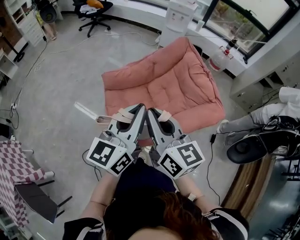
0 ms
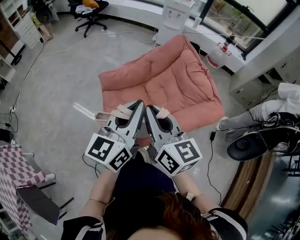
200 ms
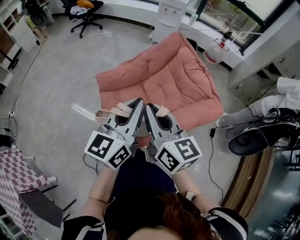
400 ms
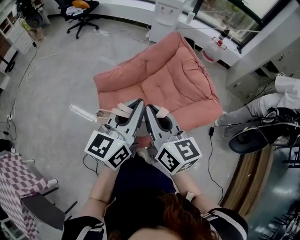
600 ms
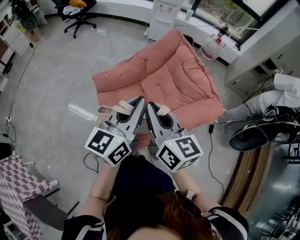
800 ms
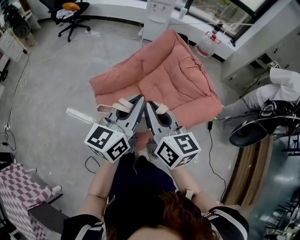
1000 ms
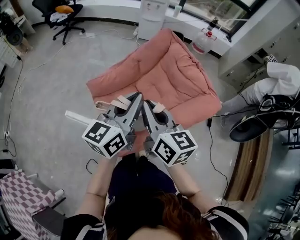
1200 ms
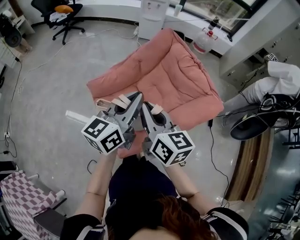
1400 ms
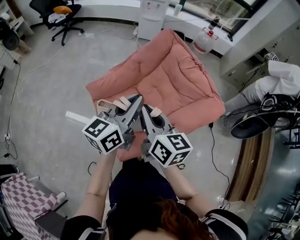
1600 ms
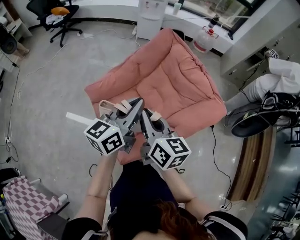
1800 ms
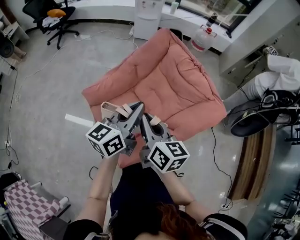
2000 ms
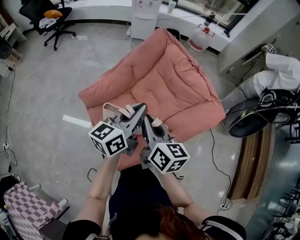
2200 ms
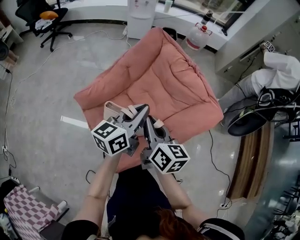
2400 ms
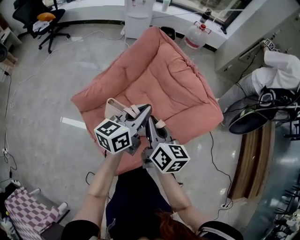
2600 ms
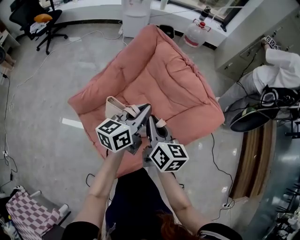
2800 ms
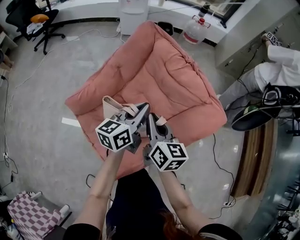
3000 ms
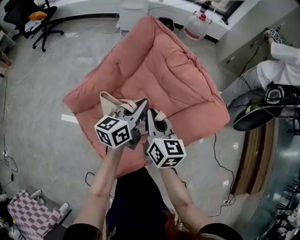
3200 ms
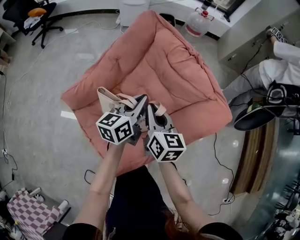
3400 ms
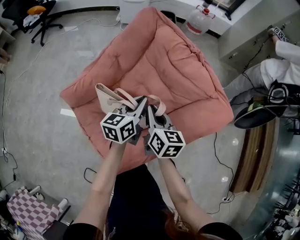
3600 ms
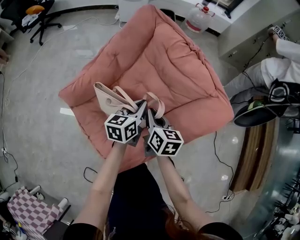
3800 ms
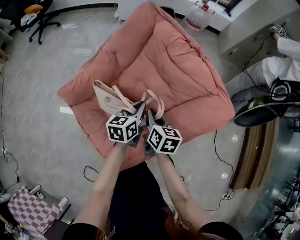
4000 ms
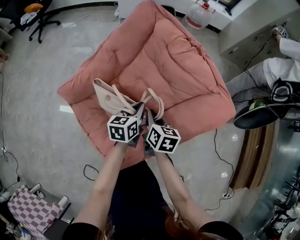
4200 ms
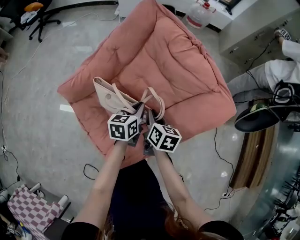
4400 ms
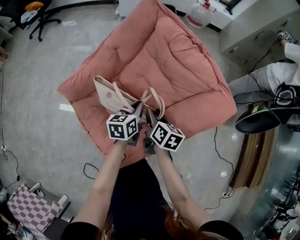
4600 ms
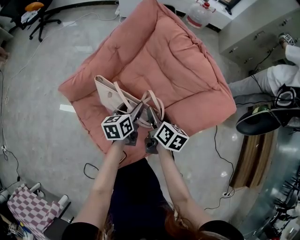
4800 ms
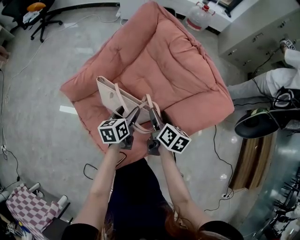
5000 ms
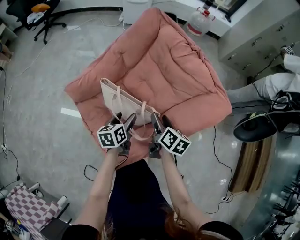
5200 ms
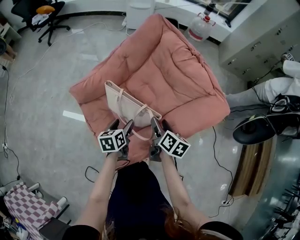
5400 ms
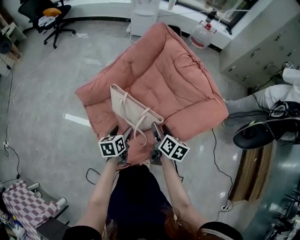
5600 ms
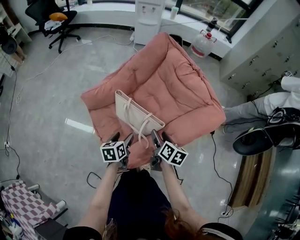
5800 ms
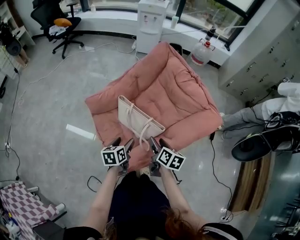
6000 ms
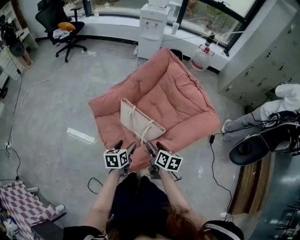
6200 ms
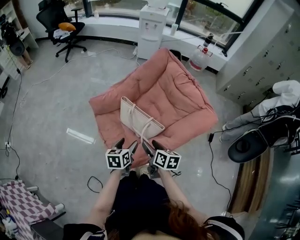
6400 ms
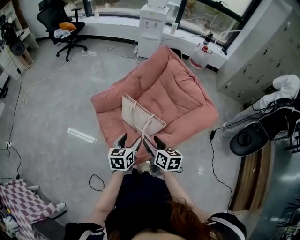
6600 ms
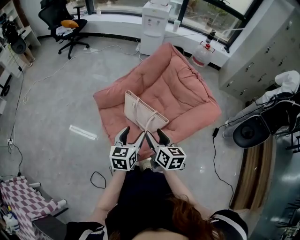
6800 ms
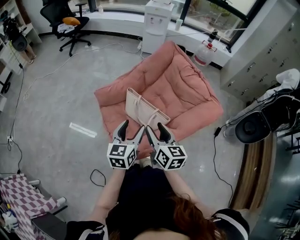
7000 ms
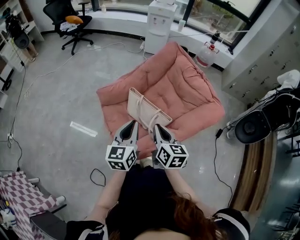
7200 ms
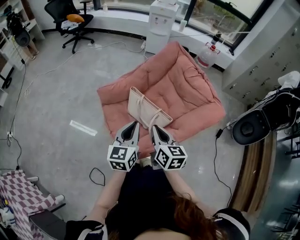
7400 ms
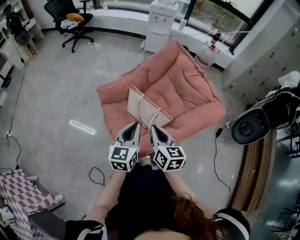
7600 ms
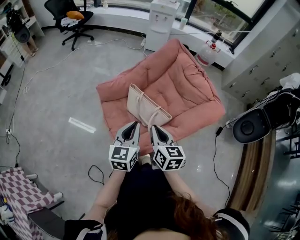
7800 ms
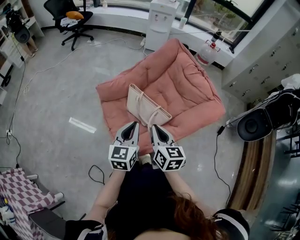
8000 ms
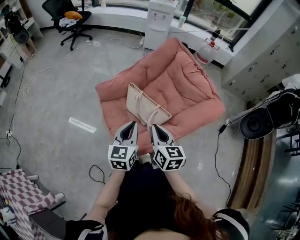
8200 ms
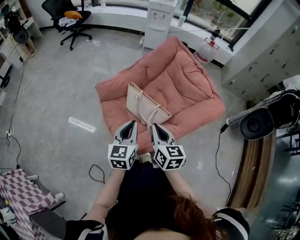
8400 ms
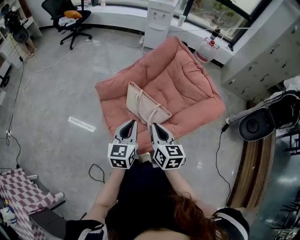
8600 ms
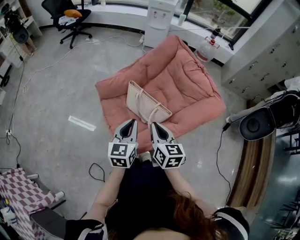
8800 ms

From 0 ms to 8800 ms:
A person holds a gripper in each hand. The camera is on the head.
From 0 ms to 1400 ms: The right gripper goes some 10 cm forward and downward; the left gripper shifts about 10 cm forward, and rotates about 20 degrees.
From 1400 ms to 3000 ms: The two grippers go some 25 cm downward, forward and to the right.
From 3000 ms to 4400 ms: The two grippers go roughly 20 cm downward. The right gripper changes its angle by approximately 20 degrees. Meanwhile the left gripper turns by some 20 degrees.
From 4400 ms to 5800 ms: The right gripper is displaced backward and upward by about 10 cm, and opens its fingers; the left gripper goes some 20 cm backward and to the left, and opens its fingers.
From 5800 ms to 7400 ms: The right gripper moves upward, to the left and backward, about 20 cm, changes its angle by some 30 degrees, and closes; the left gripper shifts about 20 cm upward, changes its angle by approximately 40 degrees, and closes its fingers.
From 7400 ms to 8800 ms: The grippers make only small movements.

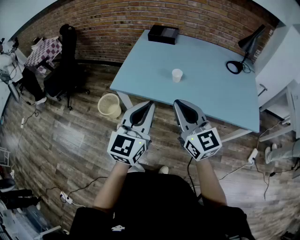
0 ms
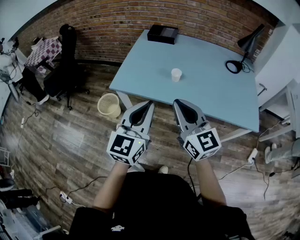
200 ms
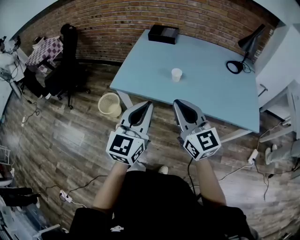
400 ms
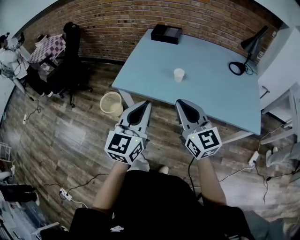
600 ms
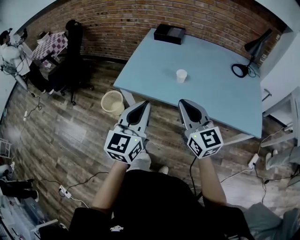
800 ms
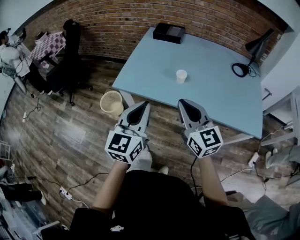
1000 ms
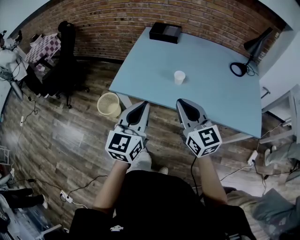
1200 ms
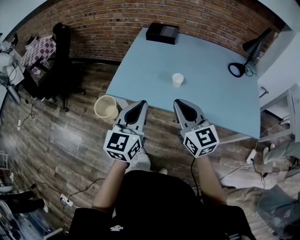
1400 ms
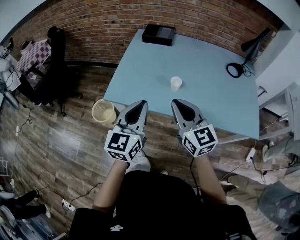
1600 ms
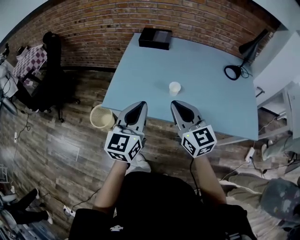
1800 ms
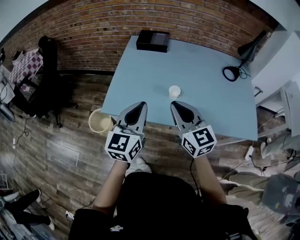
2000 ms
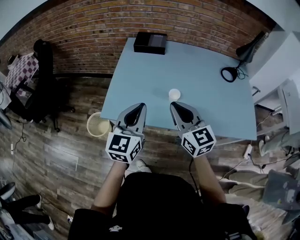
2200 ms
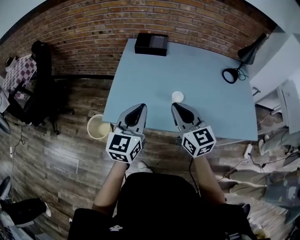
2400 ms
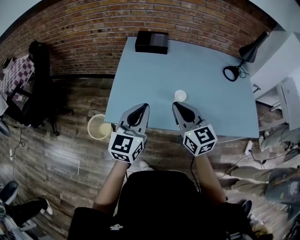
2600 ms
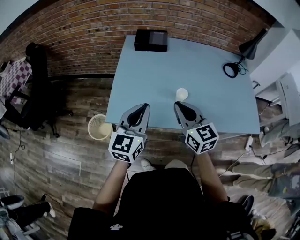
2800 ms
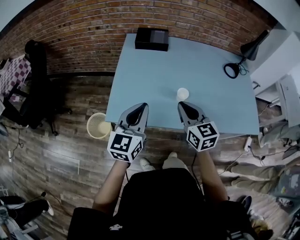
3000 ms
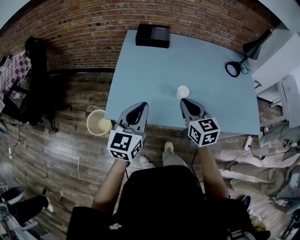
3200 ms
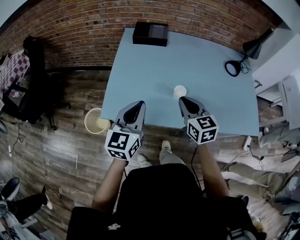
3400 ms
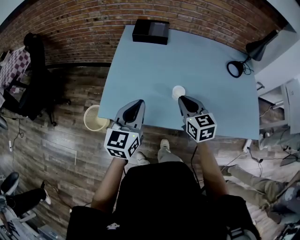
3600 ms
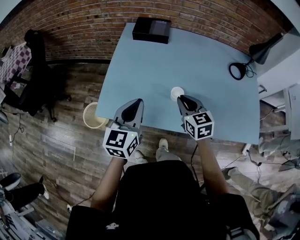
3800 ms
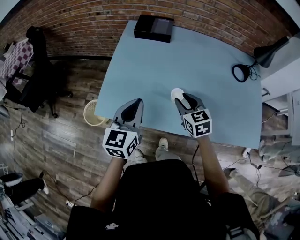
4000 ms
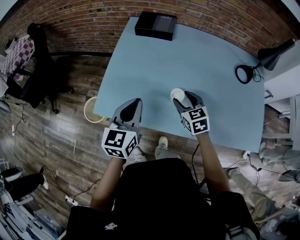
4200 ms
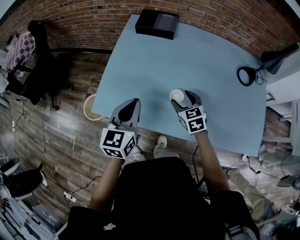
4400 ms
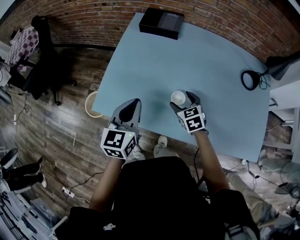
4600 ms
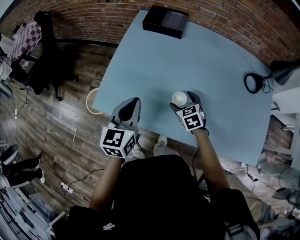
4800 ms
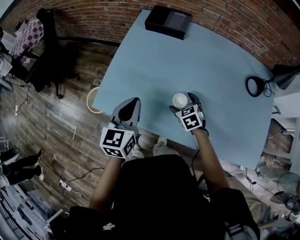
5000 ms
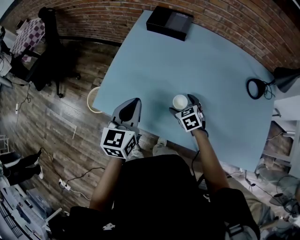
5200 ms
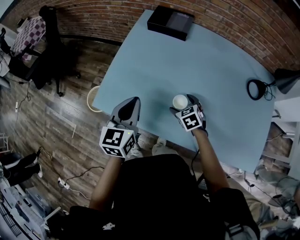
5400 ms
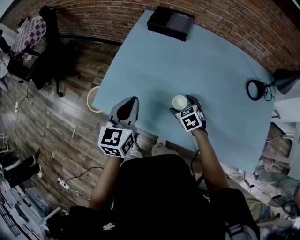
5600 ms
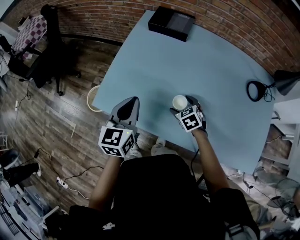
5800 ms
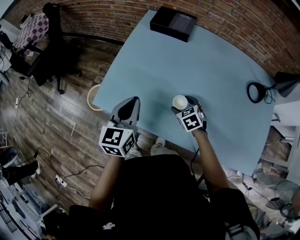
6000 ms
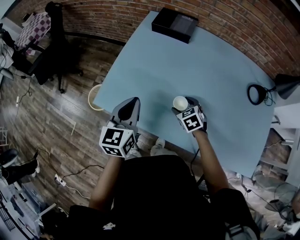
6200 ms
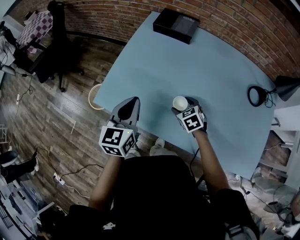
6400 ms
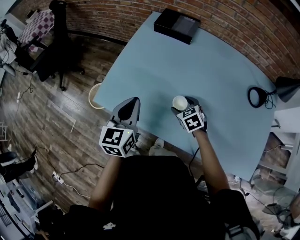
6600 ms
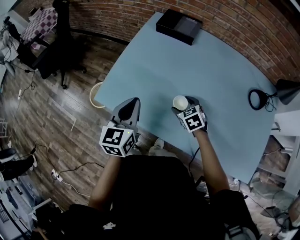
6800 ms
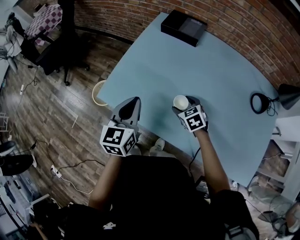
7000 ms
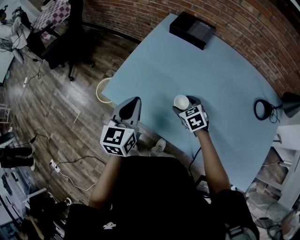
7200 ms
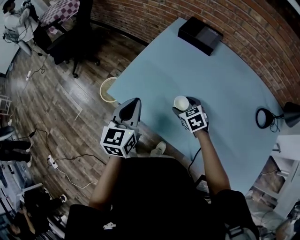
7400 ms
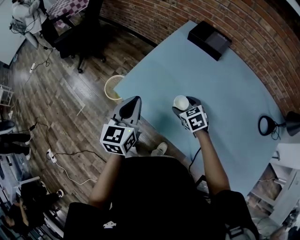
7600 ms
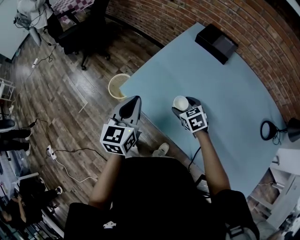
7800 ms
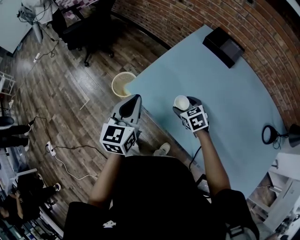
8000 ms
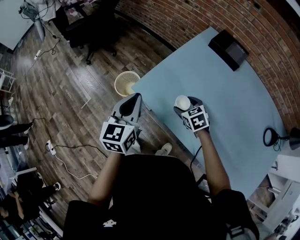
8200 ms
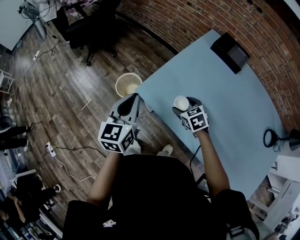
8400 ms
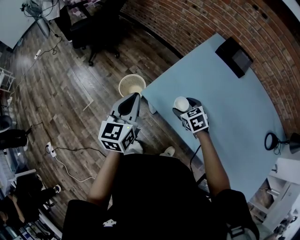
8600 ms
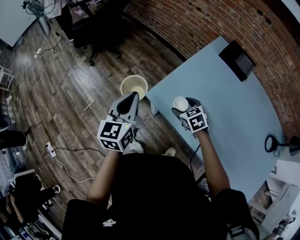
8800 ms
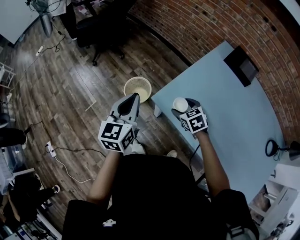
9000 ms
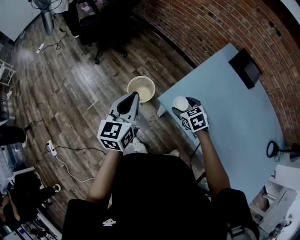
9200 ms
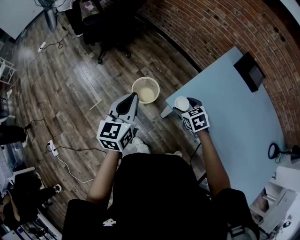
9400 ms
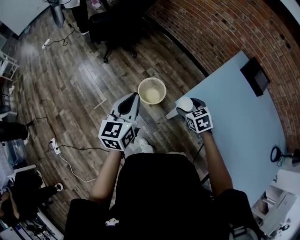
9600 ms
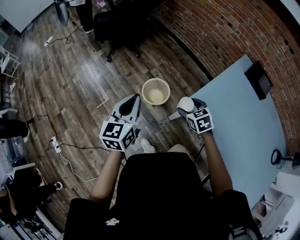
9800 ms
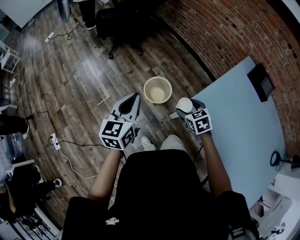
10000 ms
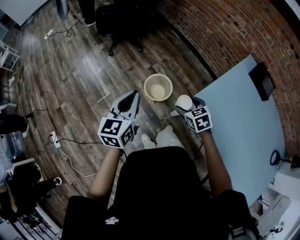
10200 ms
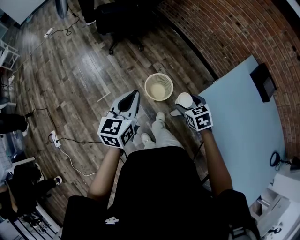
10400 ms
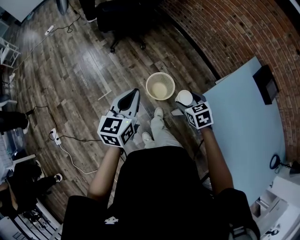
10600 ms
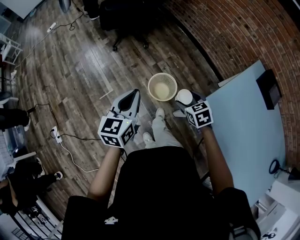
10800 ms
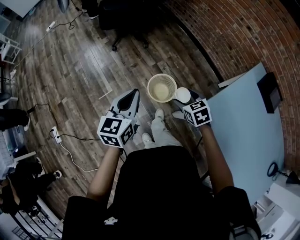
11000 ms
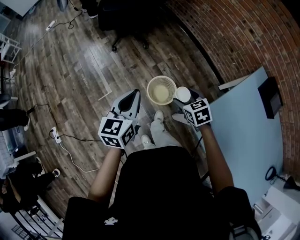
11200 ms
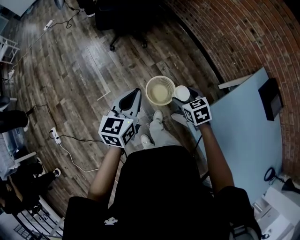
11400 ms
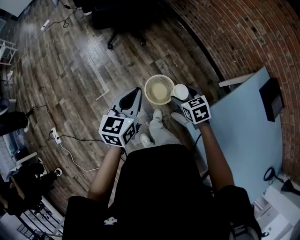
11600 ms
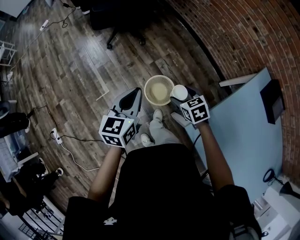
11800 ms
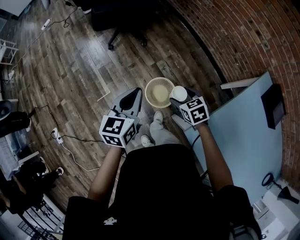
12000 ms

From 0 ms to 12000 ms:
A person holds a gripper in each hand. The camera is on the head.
From 0 ms to 1600 ms: Both grippers move forward, roughly 10 cm.
From 1600 ms to 3000 ms: The right gripper shifts some 15 cm forward and downward. Meanwhile the left gripper goes approximately 15 cm forward and to the left.
From 3000 ms to 4400 ms: The left gripper is displaced forward, to the right and downward by roughly 10 cm; the right gripper shifts approximately 20 cm downward, forward and to the right, swivels approximately 30 degrees, and opens its fingers.
From 4400 ms to 6000 ms: The right gripper shifts some 10 cm downward.
From 6000 ms to 7600 ms: Both grippers move to the left, about 10 cm.
From 7600 ms to 9000 ms: The right gripper moves to the left and forward, some 25 cm; the left gripper moves to the left, some 25 cm.
From 9000 ms to 10400 ms: The two grippers go some 20 cm to the left.
From 10400 ms to 12000 ms: The two grippers go about 20 cm forward.

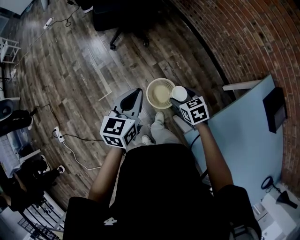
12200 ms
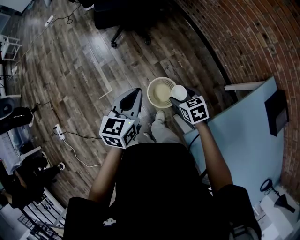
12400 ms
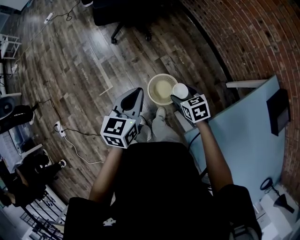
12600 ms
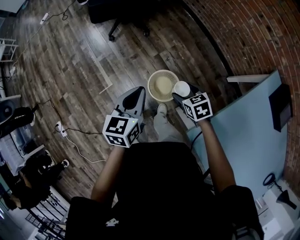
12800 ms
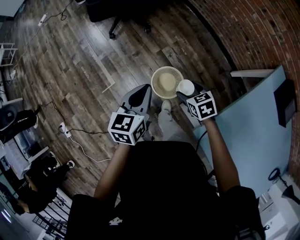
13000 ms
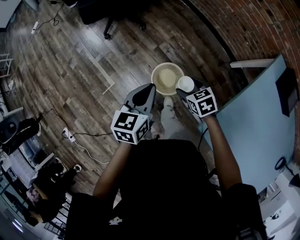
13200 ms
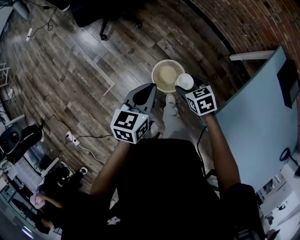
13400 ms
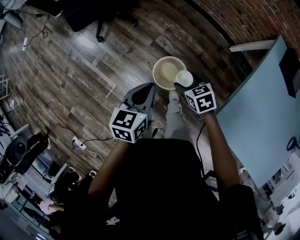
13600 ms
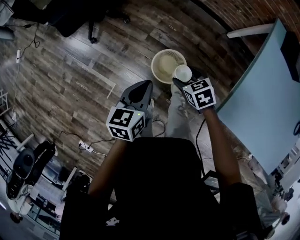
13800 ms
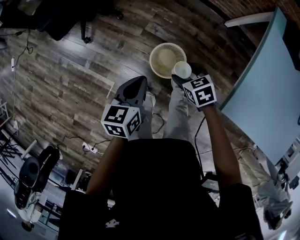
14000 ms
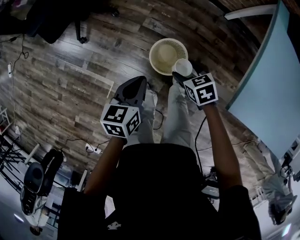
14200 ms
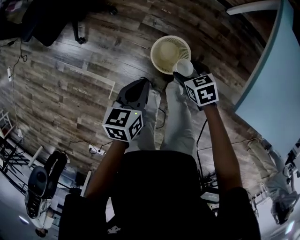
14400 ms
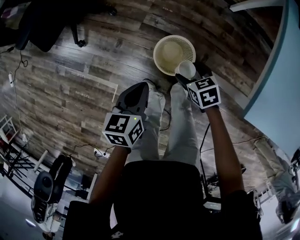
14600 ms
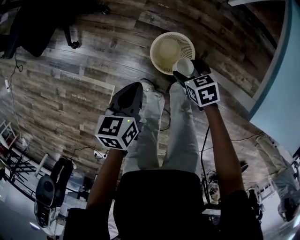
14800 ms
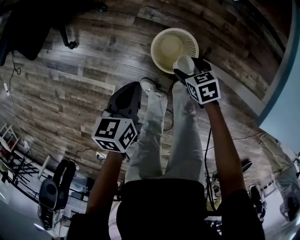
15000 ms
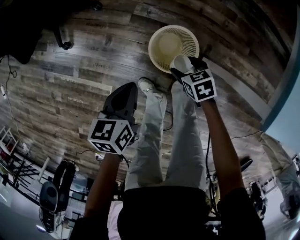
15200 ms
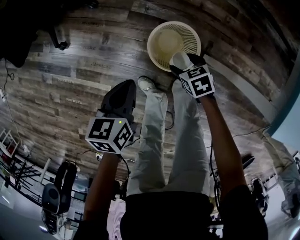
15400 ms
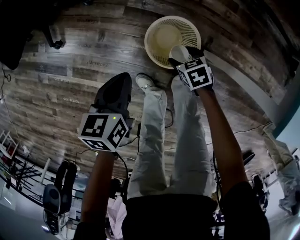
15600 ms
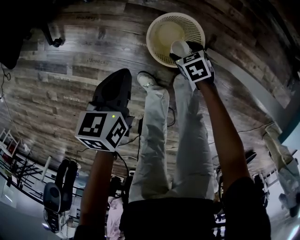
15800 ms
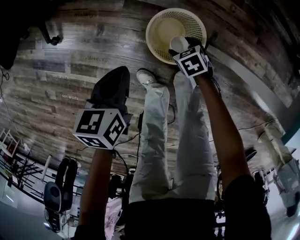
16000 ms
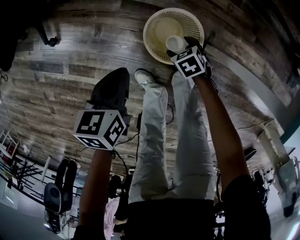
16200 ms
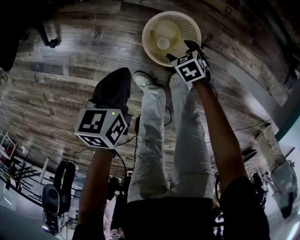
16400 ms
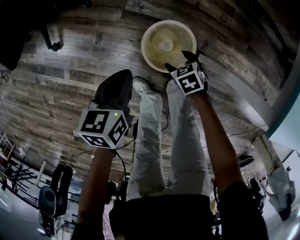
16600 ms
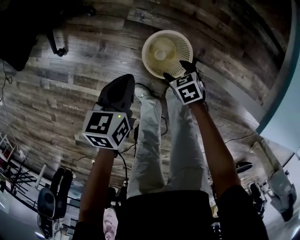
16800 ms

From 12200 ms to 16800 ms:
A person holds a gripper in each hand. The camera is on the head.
From 12200 ms to 13800 ms: The grippers both shift downward by about 10 cm. The left gripper changes its angle by roughly 30 degrees; the right gripper turns by roughly 20 degrees.
From 13800 ms to 15200 ms: Both grippers move downward, roughly 25 cm.
From 15200 ms to 16800 ms: The right gripper reaches roughly 15 cm downward, then returns, while the left gripper travels downward and back again, roughly 5 cm each way.
